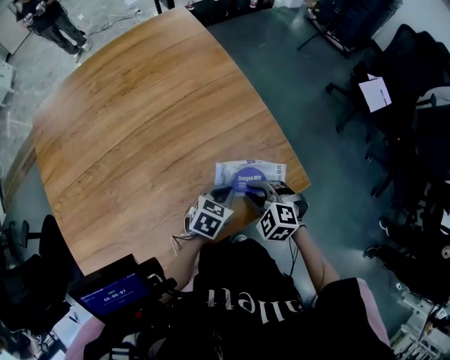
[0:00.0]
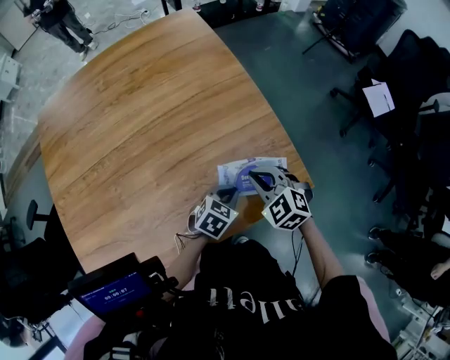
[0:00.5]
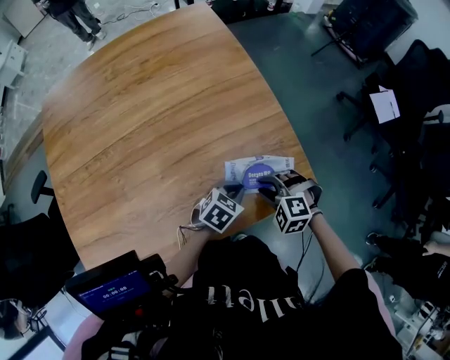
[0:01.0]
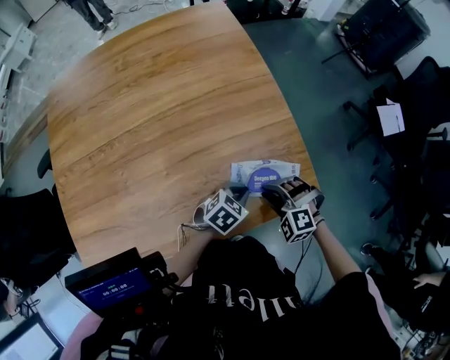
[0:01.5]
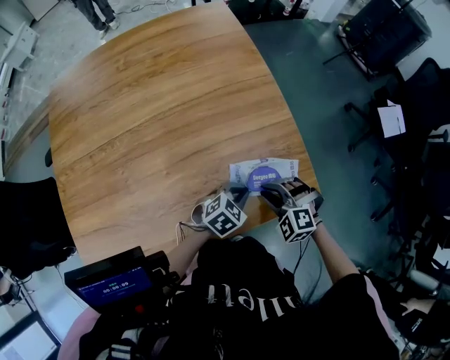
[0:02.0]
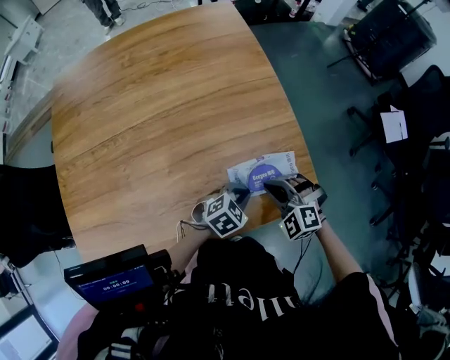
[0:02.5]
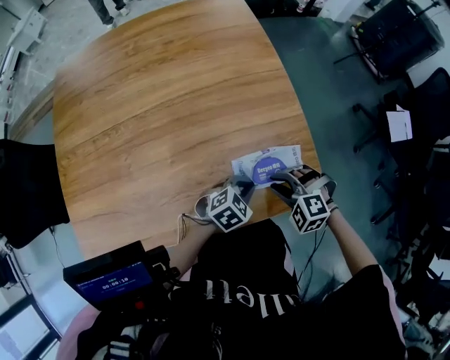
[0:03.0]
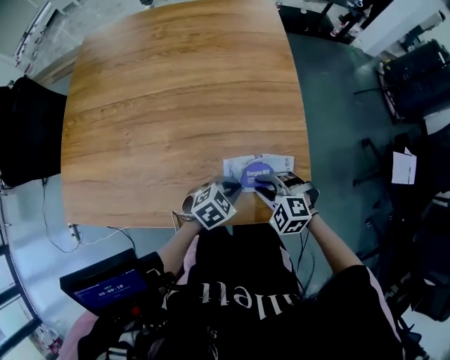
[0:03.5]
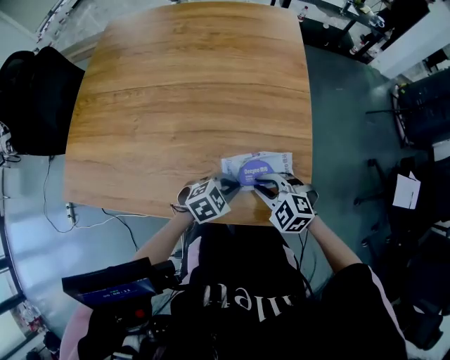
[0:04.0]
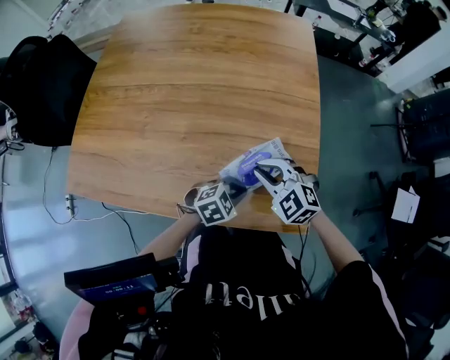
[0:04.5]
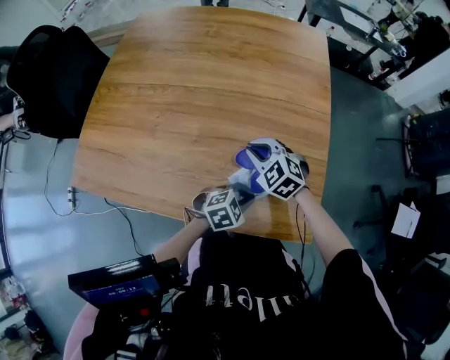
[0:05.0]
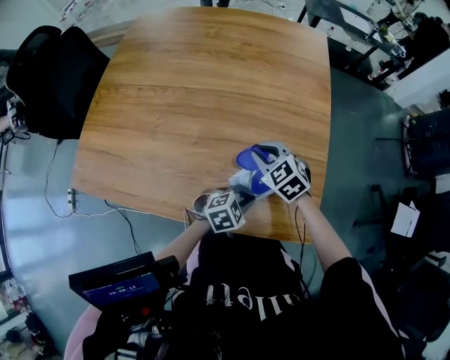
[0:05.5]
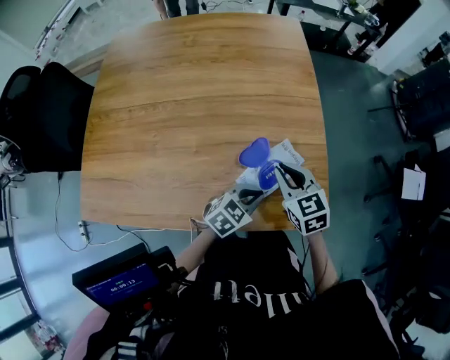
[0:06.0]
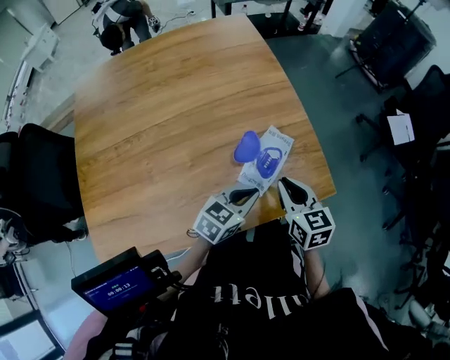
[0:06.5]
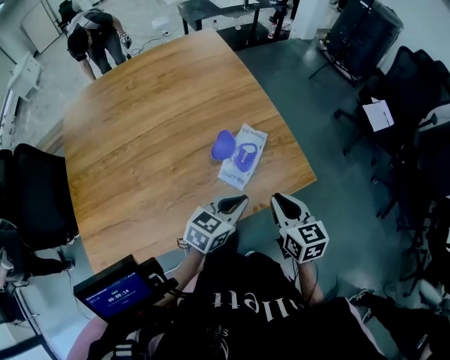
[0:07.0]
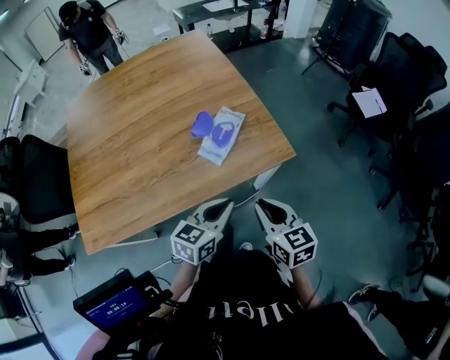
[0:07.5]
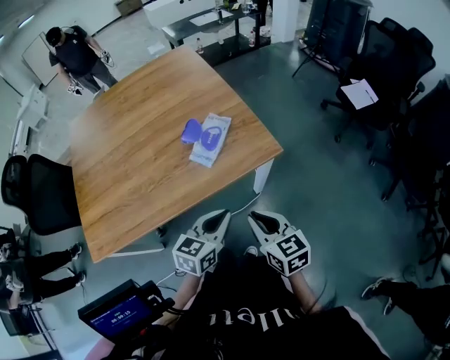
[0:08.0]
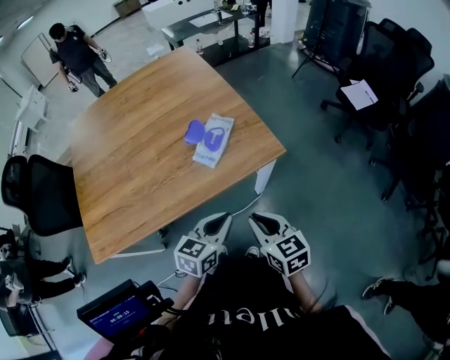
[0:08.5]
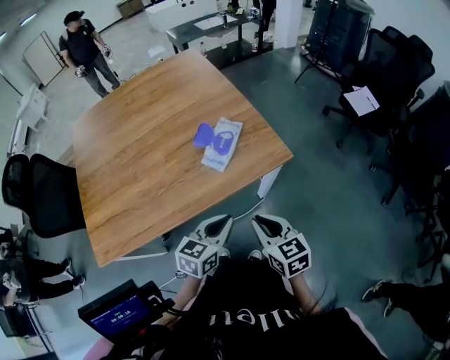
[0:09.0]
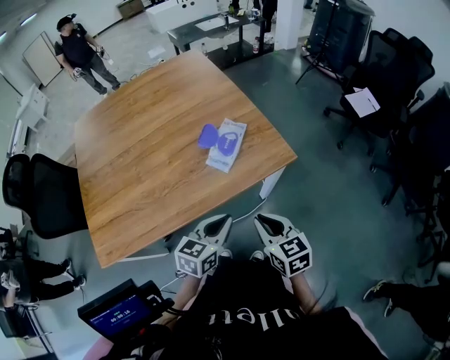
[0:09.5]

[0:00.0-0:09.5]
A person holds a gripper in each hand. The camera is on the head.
0:00.0 to 0:02.0: The right gripper turns by some 20 degrees.
0:02.0 to 0:04.0: The right gripper turns by roughly 20 degrees.
0:04.0 to 0:05.5: The right gripper moves some 15 cm.
0:05.5 to 0:07.5: The right gripper ends up about 40 cm from where it was, and turns by some 70 degrees, while the left gripper shifts by about 25 cm, and swivels roughly 30 degrees.
0:07.5 to 0:09.5: The left gripper ends up roughly 5 cm from where it was; the right gripper heads backward, covering some 5 cm.

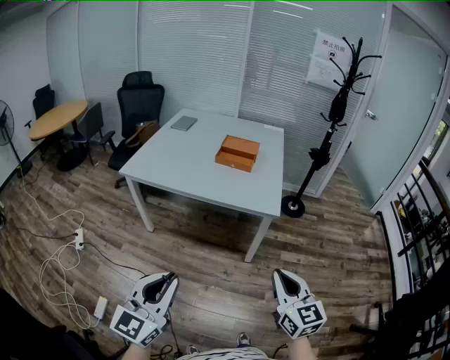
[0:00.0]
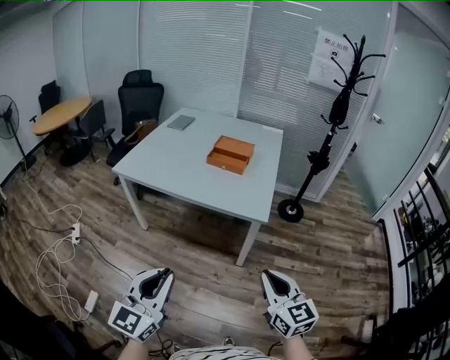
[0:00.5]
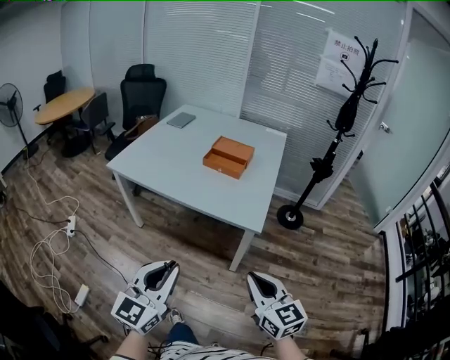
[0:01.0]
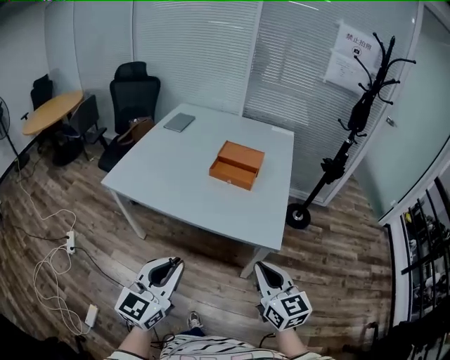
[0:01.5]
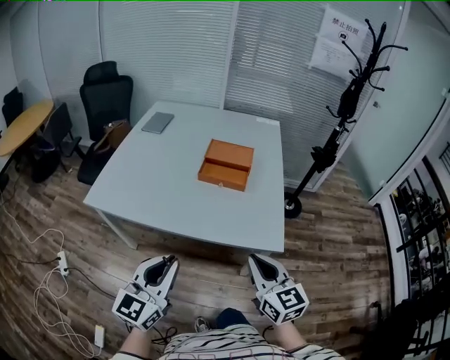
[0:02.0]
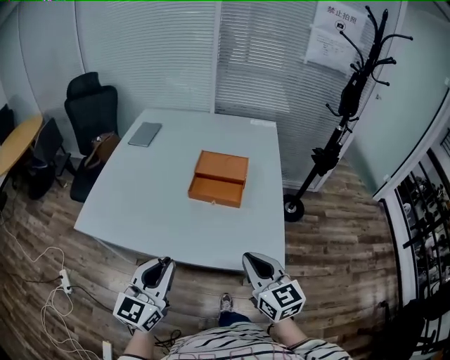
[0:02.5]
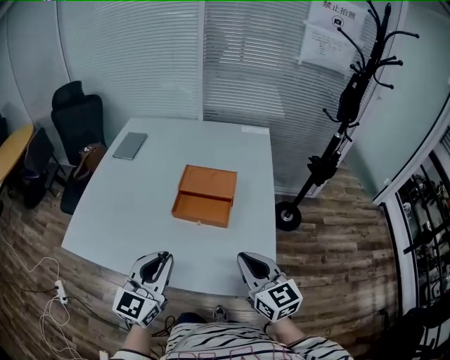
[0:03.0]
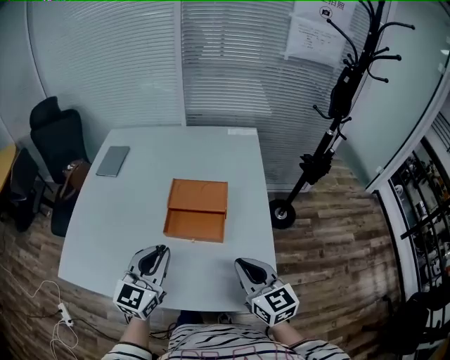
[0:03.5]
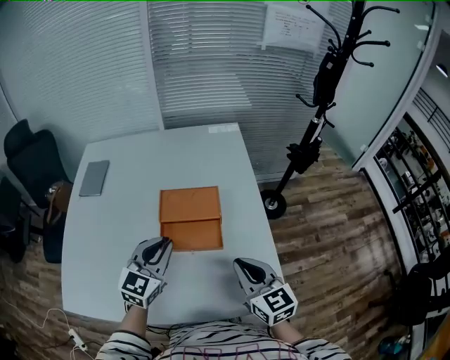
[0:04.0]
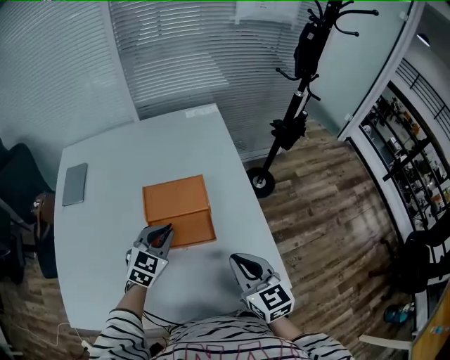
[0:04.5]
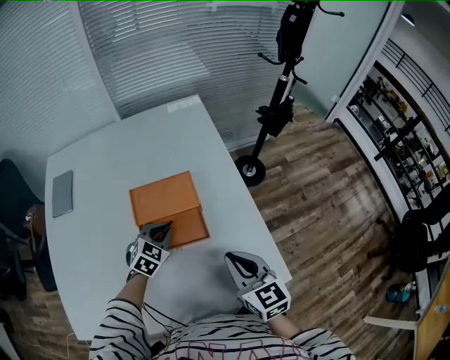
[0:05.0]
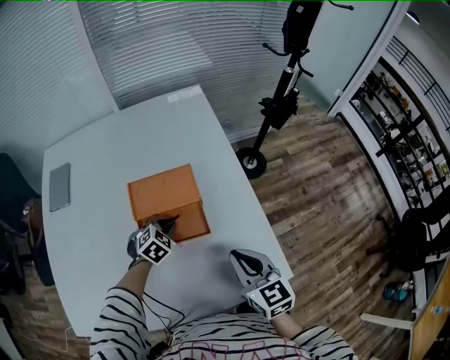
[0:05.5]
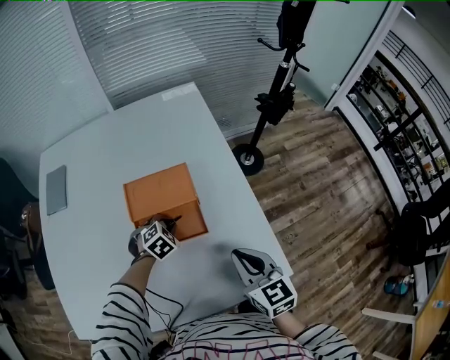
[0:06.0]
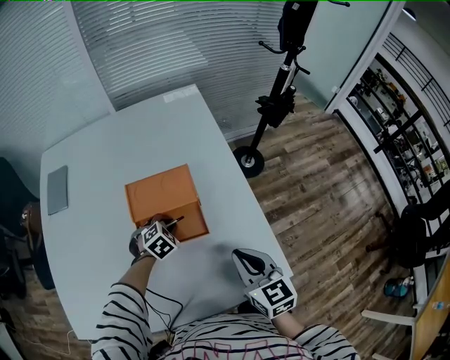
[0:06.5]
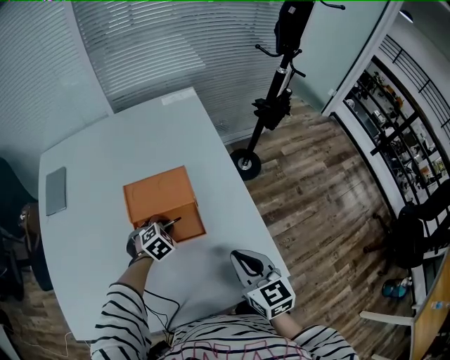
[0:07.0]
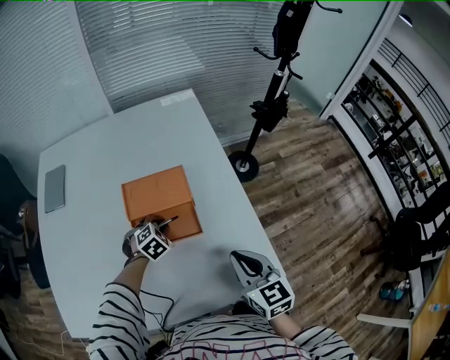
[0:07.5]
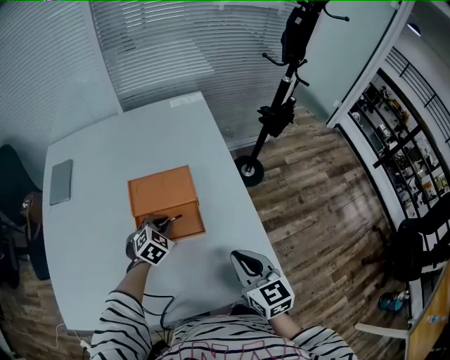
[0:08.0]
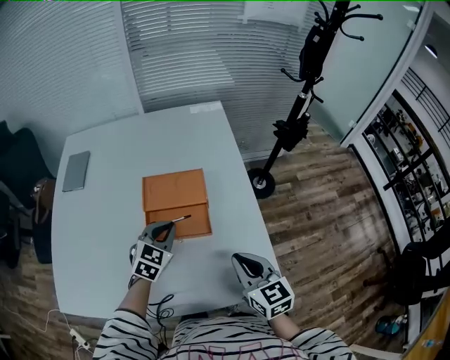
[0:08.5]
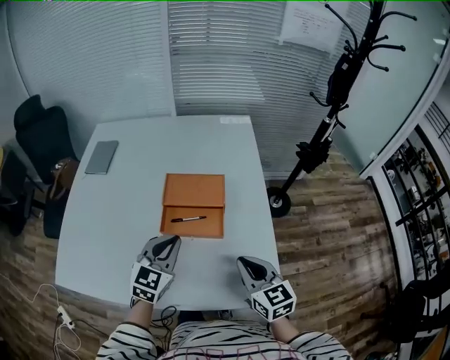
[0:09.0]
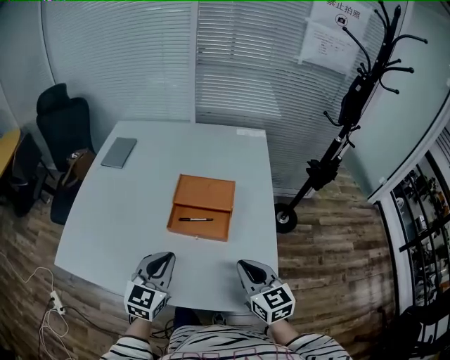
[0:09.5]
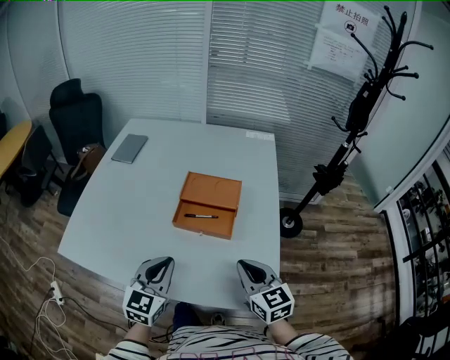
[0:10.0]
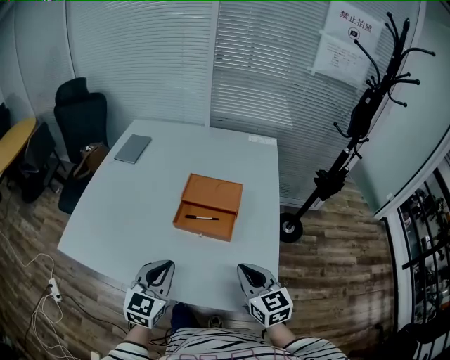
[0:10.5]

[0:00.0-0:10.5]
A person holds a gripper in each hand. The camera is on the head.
0:00.0 to 0:02.0: Both grippers travel together forward, roughly 35 cm.
0:02.0 to 0:04.0: Both grippers travel together forward, roughly 40 cm. The left gripper swivels some 20 degrees.
0:04.0 to 0:06.5: The left gripper moves downward, approximately 25 cm, and tilts its fingers approximately 50 degrees downward, while the right gripper travels downward by roughly 5 cm.
0:06.5 to 0:08.5: The left gripper moves upward, roughly 15 cm, and tilts its fingers approximately 30 degrees upward.
0:08.5 to 0:10.5: The left gripper heads backward, covering roughly 20 cm, and rotates about 30 degrees.

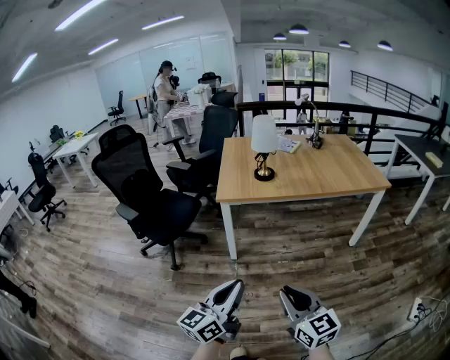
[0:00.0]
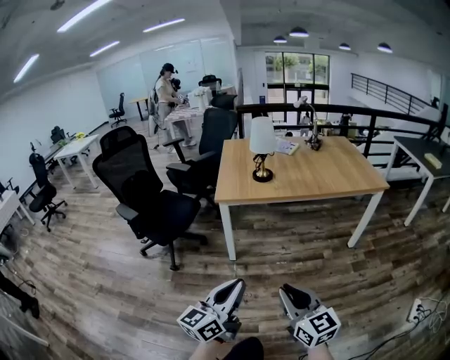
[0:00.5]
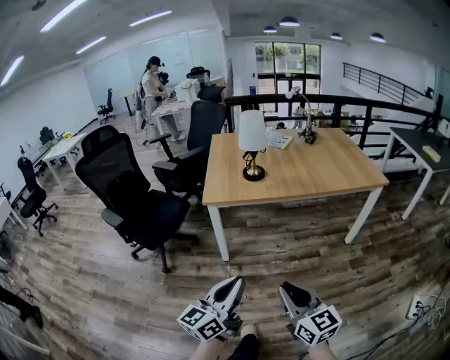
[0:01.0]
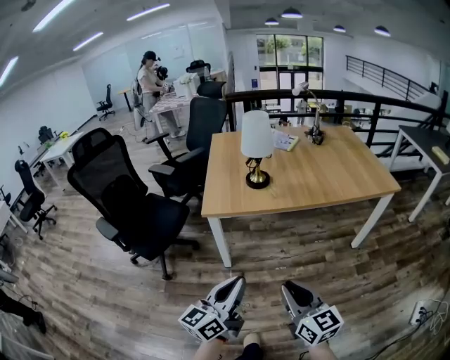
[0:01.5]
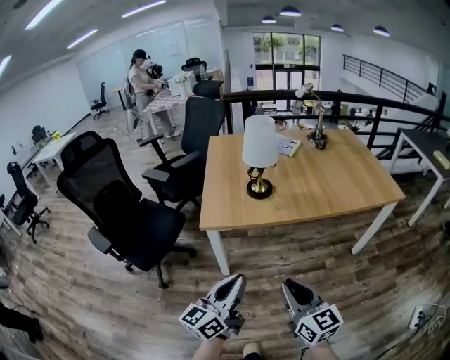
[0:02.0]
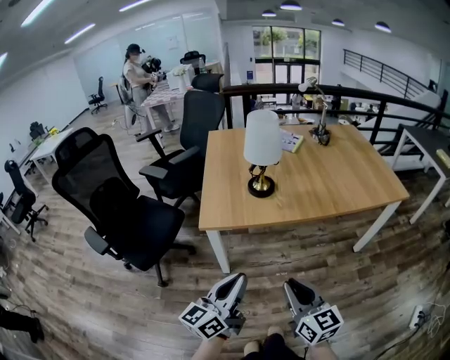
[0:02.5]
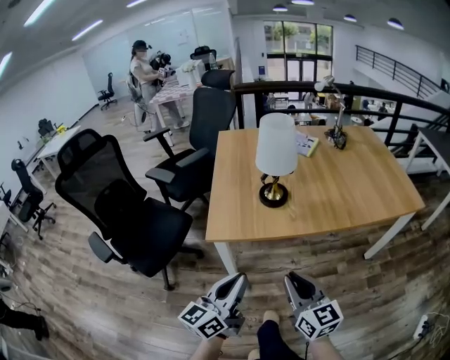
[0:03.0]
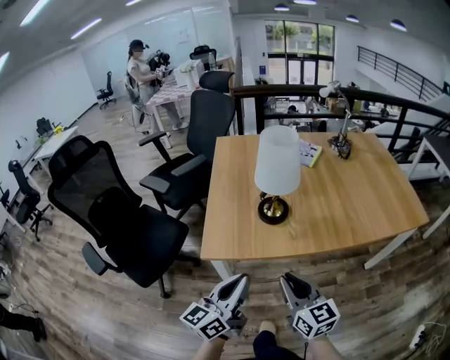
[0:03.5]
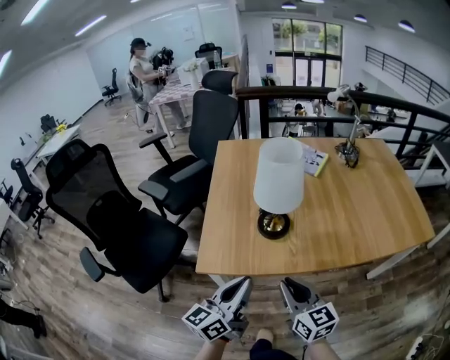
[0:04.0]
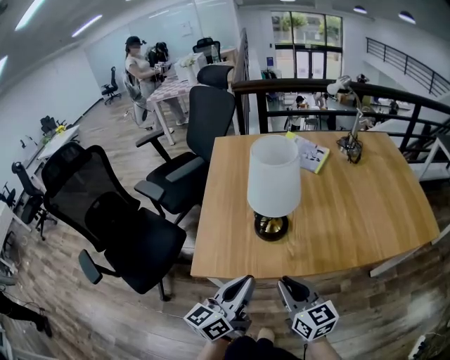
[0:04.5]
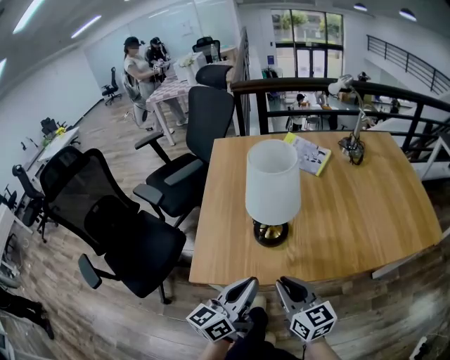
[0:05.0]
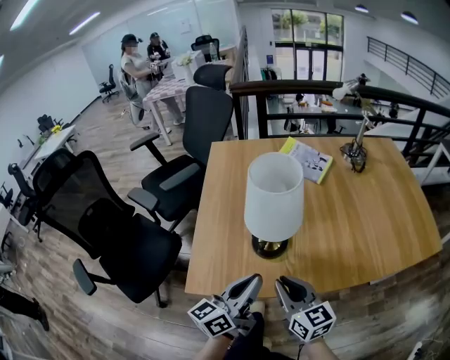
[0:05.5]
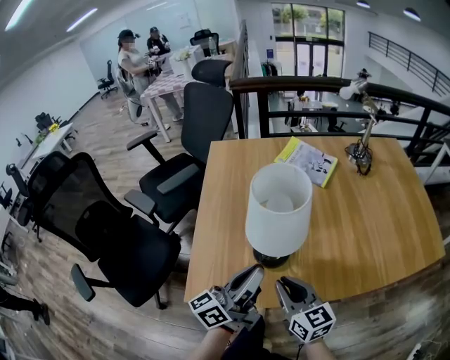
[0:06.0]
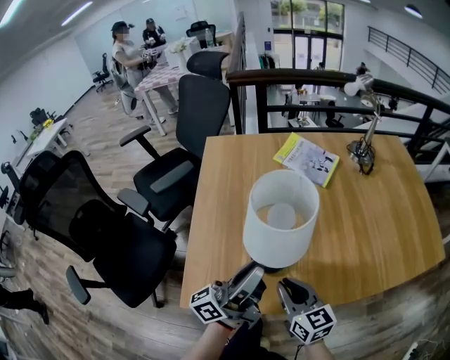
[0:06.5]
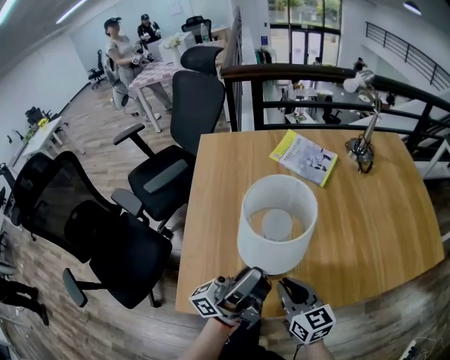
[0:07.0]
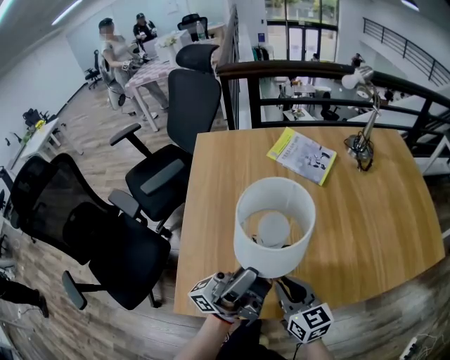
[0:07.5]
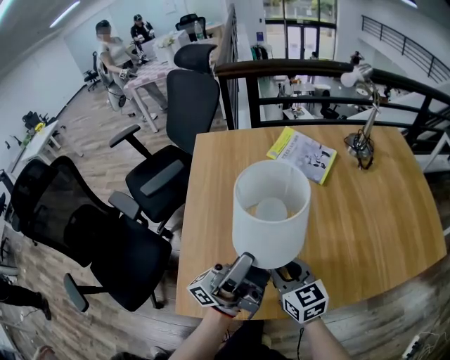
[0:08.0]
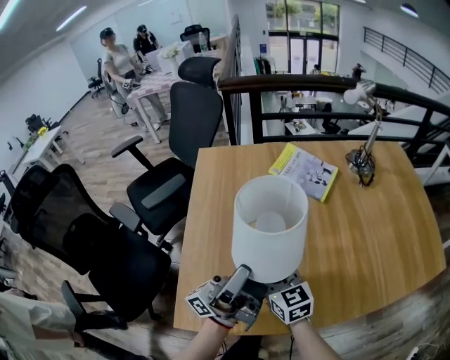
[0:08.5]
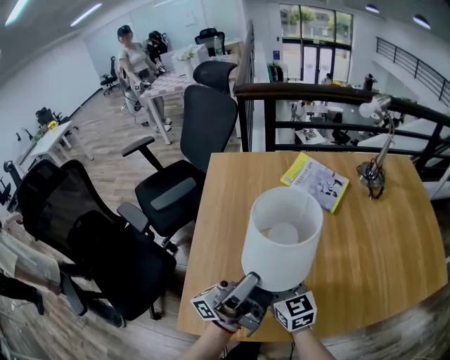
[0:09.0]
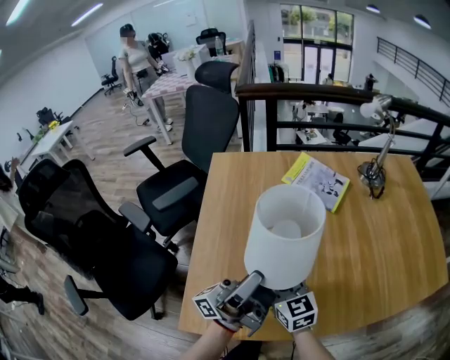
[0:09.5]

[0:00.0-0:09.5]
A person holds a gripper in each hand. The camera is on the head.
0:00.0 to 0:02.0: Both grippers travel together forward, some 25 cm.
0:02.0 to 0:04.0: The grippers both shift forward by roughly 25 cm.
0:04.0 to 0:05.5: Both grippers move forward, some 10 cm.
0:05.5 to 0:07.5: The right gripper goes about 10 cm forward. The left gripper is displaced forward and upward by some 15 cm, and angles its fingers upward, by about 50 degrees.
0:07.5 to 0:09.5: The right gripper travels forward and to the left by approximately 10 cm.
